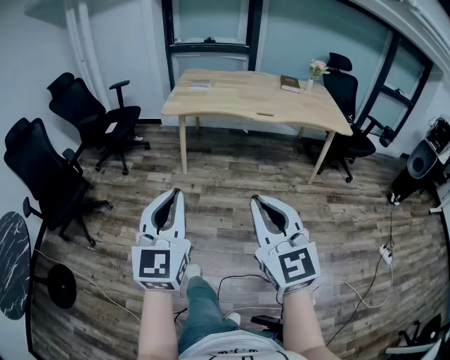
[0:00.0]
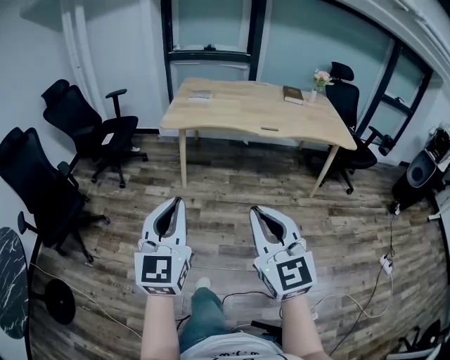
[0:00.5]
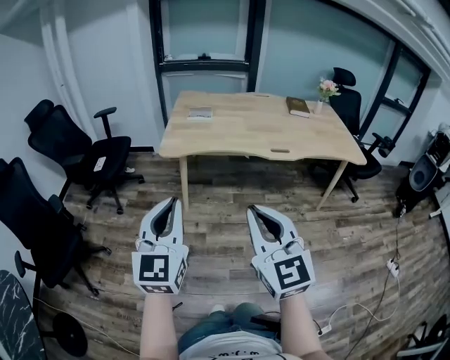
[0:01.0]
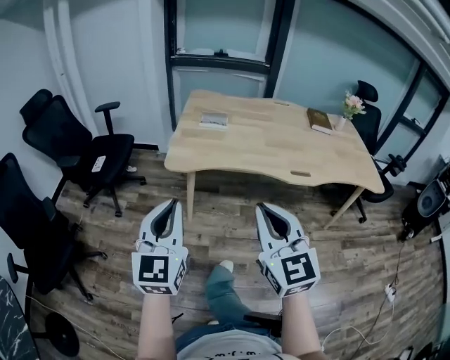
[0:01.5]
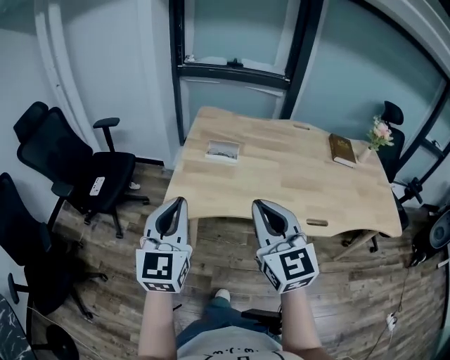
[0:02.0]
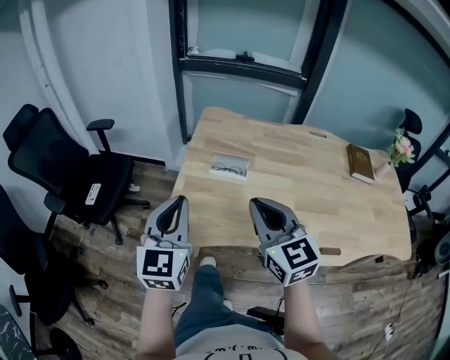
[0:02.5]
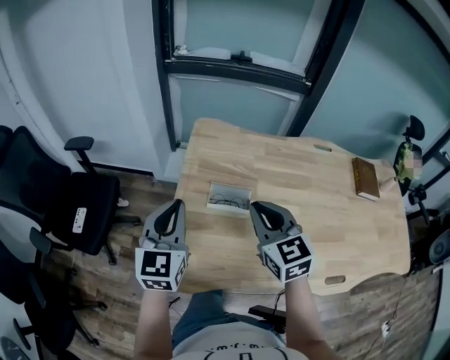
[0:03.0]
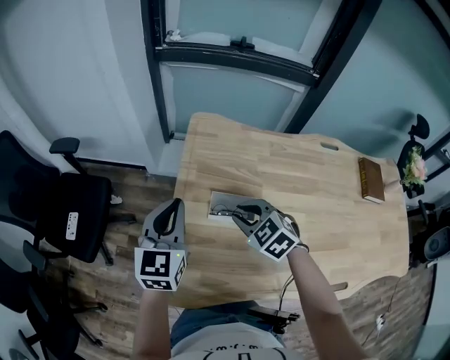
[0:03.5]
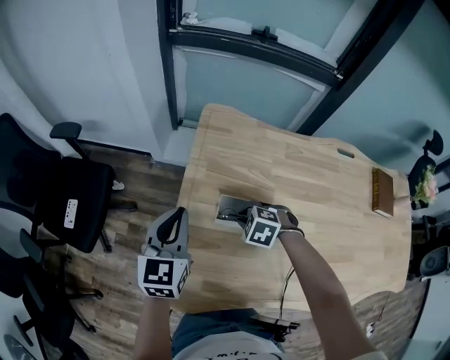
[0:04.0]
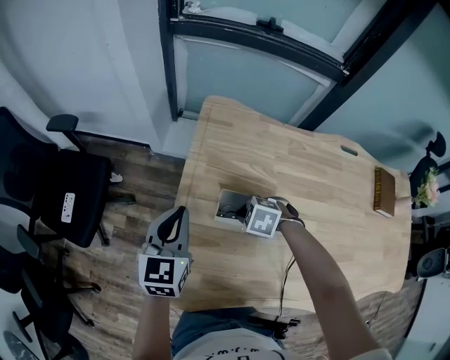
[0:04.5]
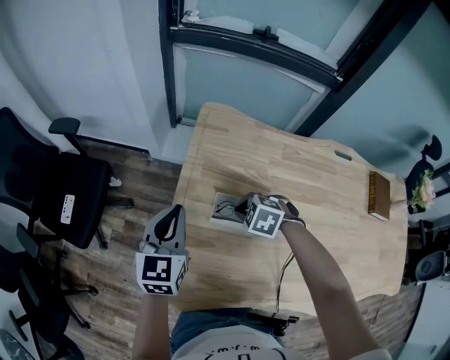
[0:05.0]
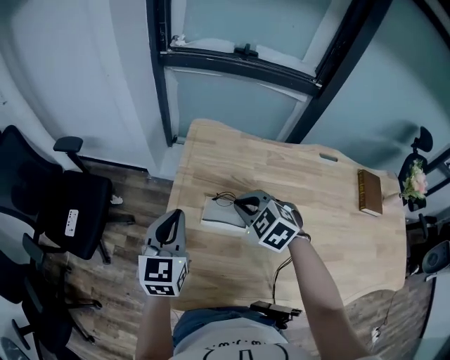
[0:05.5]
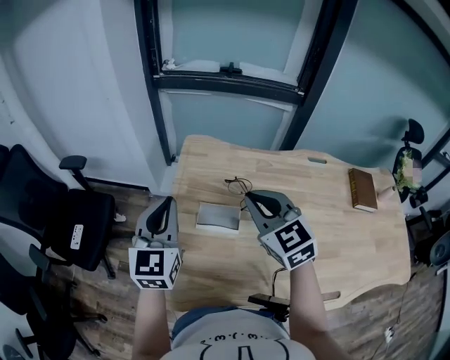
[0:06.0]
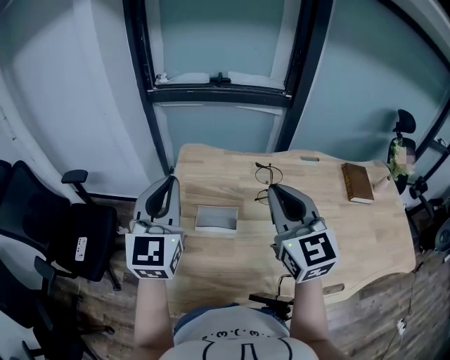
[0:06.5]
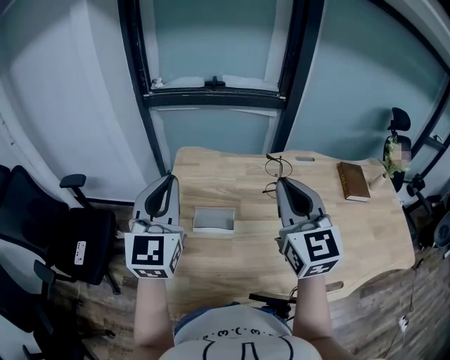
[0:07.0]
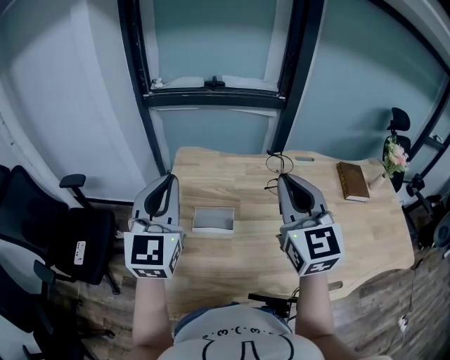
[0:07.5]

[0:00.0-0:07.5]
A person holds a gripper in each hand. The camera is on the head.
0:00.0 to 0:02.0: Both grippers are carried forward, approximately 70 cm.
0:02.0 to 0:04.0: The two grippers travel together, forward, roughly 50 cm. The left gripper rotates approximately 20 degrees; the right gripper shifts approximately 35 cm downward, and angles its fingers downward, by some 70 degrees.
0:04.0 to 0:05.5: The left gripper ends up roughly 5 cm from where it was; the right gripper shifts roughly 15 cm upward, and turns by some 30 degrees.
0:05.5 to 0:07.5: The left gripper heads upward, covering roughly 20 cm, and turns by roughly 20 degrees. The right gripper shifts roughly 30 cm upward, to the right and backward, and points its fingers some 50 degrees further upward.

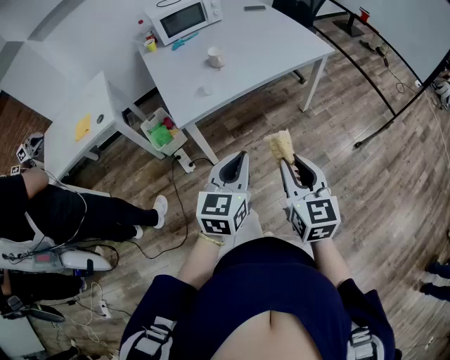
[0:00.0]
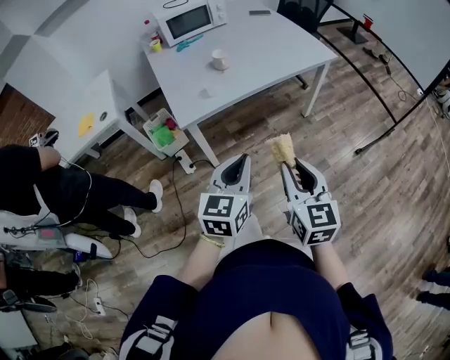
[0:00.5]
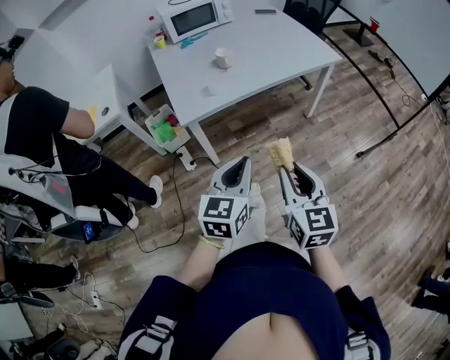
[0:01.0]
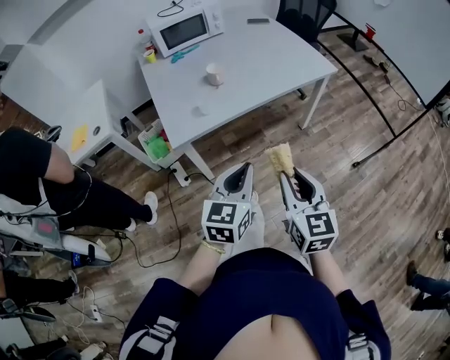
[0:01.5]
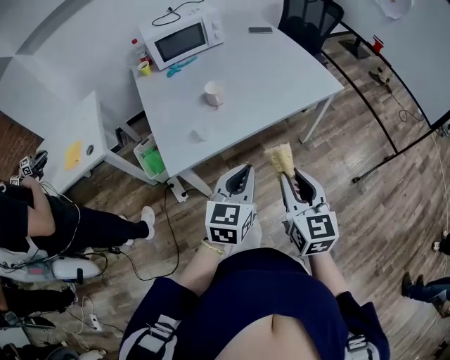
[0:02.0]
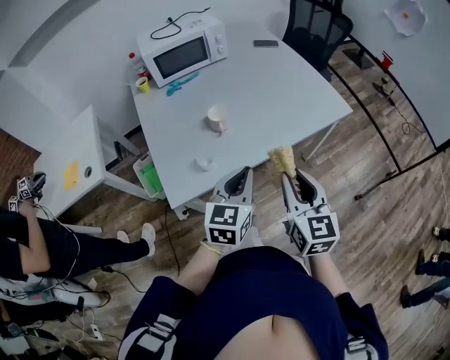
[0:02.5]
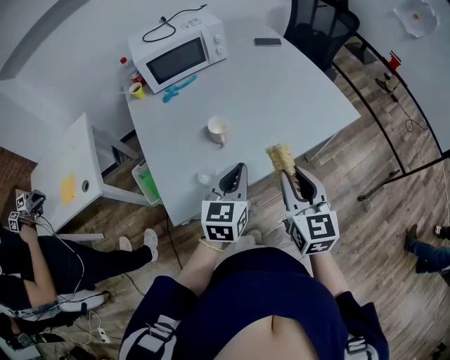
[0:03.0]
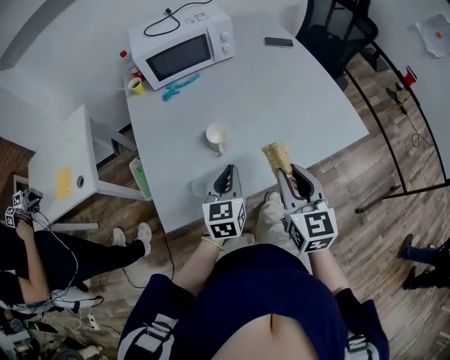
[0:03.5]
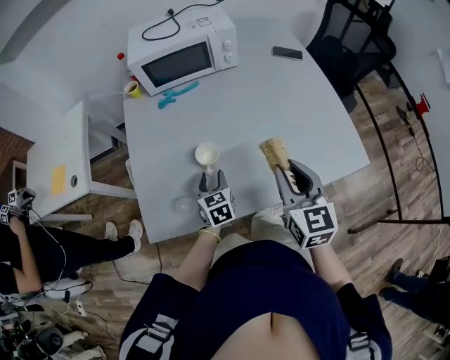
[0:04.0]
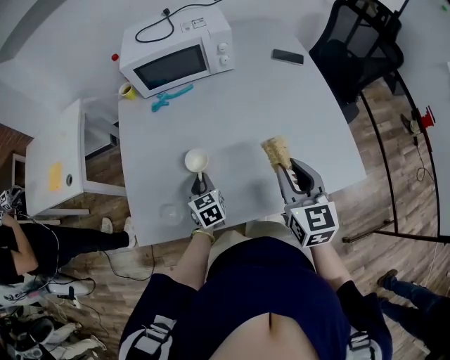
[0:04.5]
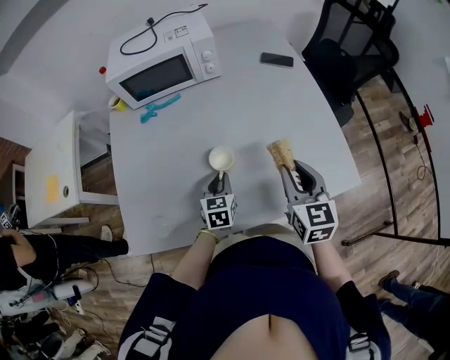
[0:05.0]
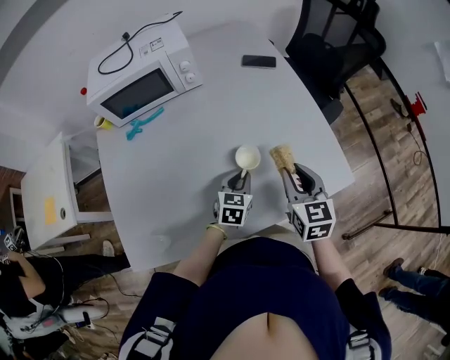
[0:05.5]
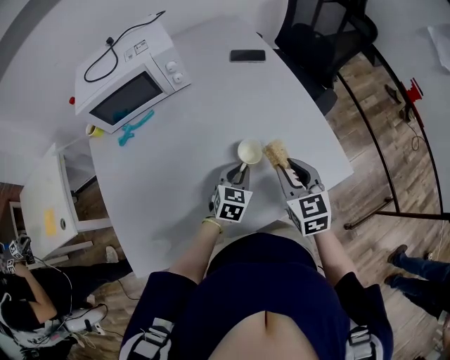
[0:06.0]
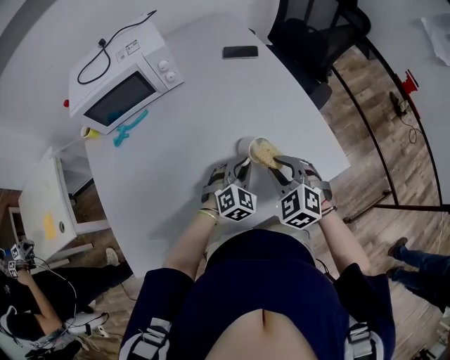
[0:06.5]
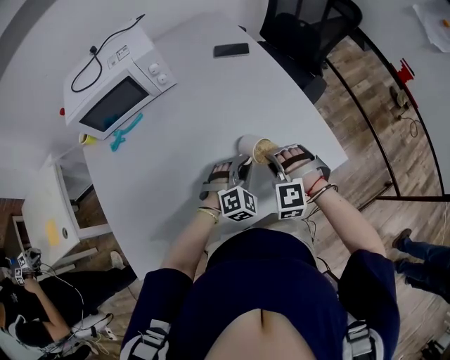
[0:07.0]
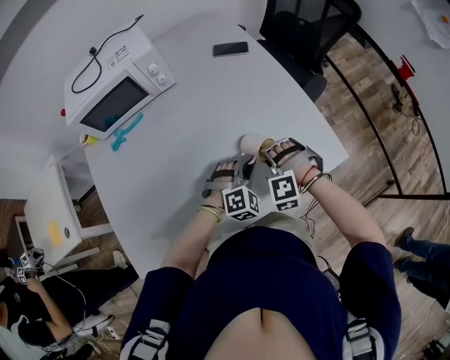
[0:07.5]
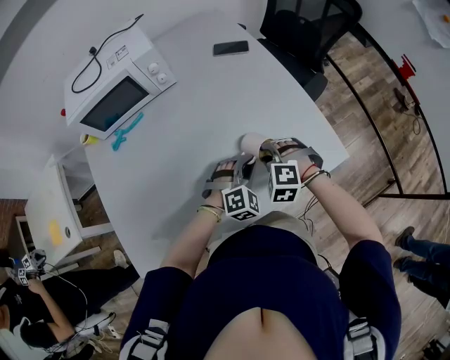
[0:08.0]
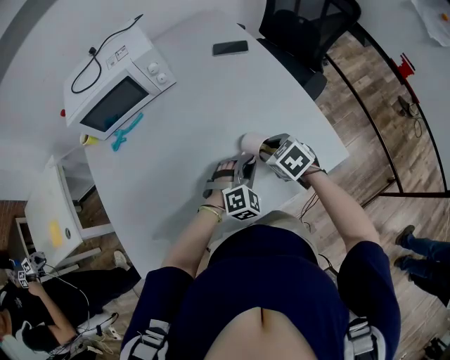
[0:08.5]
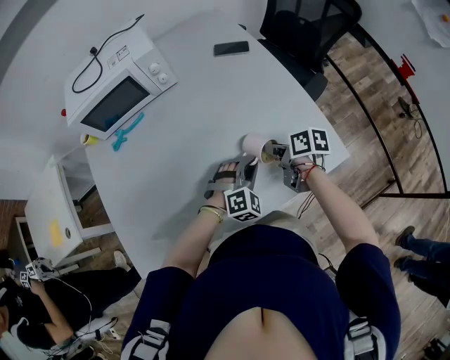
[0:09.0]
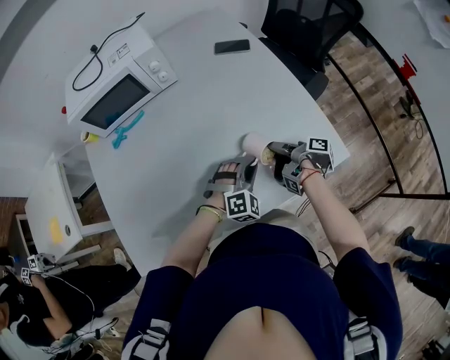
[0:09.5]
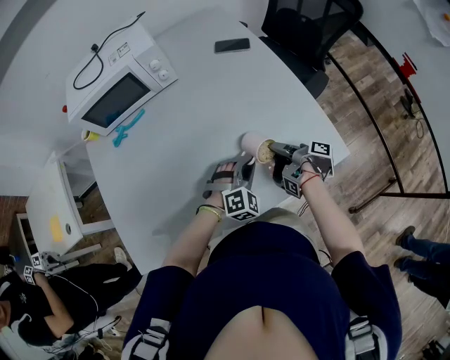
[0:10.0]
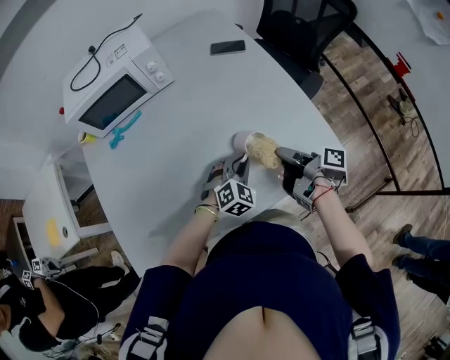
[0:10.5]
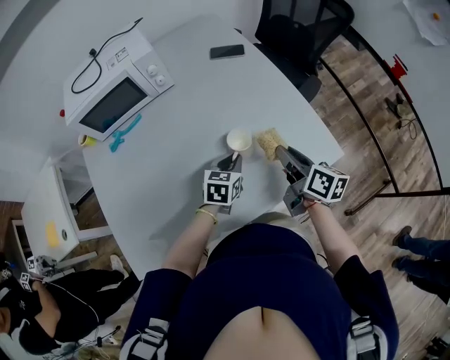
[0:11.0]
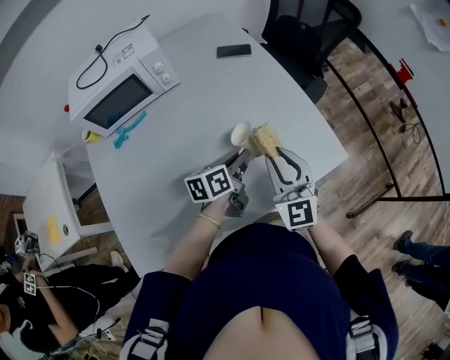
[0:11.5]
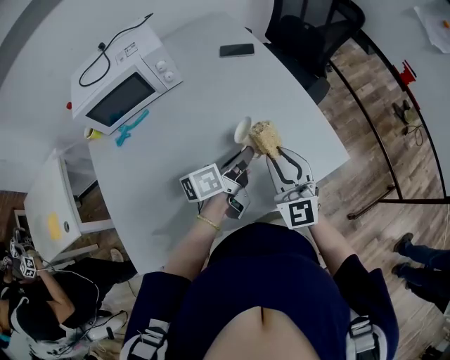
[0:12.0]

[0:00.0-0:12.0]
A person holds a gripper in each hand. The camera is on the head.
0:00.0 to 0:02.0: Both grippers travel together forward, approximately 20 cm.
0:02.0 to 0:04.0: The left gripper ends up some 40 cm from where it was, rotates some 40 degrees, and opens. The right gripper changes place by about 40 cm.
0:04.0 to 0:06.0: The left gripper ends up roughly 30 cm from where it was, changes its angle by approximately 40 degrees, and closes. Meanwhile the right gripper changes place by about 20 cm.
0:06.0 to 0:08.0: The right gripper goes roughly 10 cm downward, and rolls counterclockwise, seen from behind, by roughly 60 degrees. Meanwhile the left gripper goes approximately 5 cm to the right, and rotates around the line of its fingers by approximately 50 degrees, clockwise from behind.
0:08.0 to 0:10.0: The right gripper points its fingers some 30 degrees further upward.
0:10.0 to 0:12.0: Both grippers move upward, approximately 15 cm. The left gripper twists about 110 degrees counterclockwise, seen from behind. The right gripper rolls counterclockwise, seen from behind, by about 130 degrees.

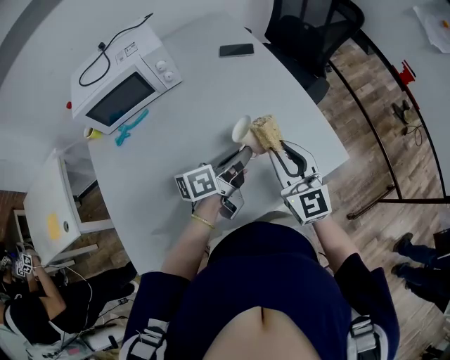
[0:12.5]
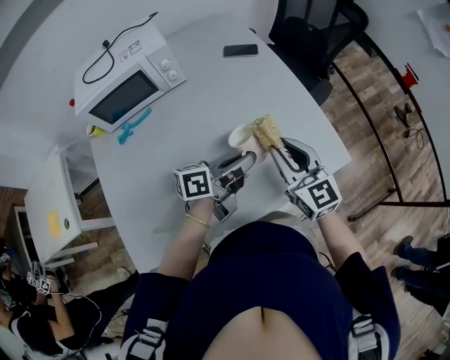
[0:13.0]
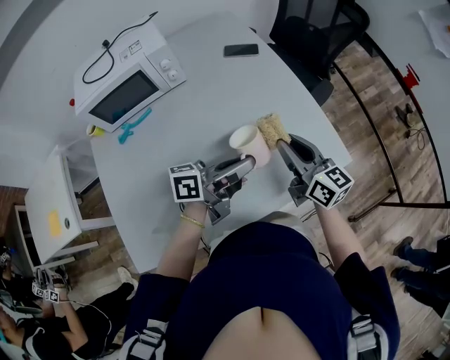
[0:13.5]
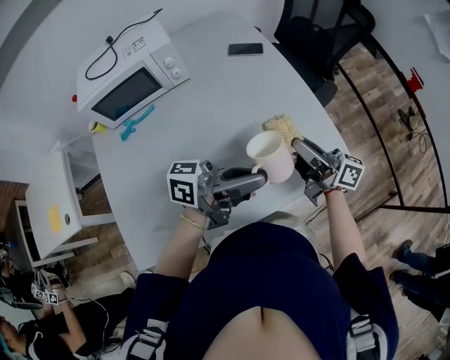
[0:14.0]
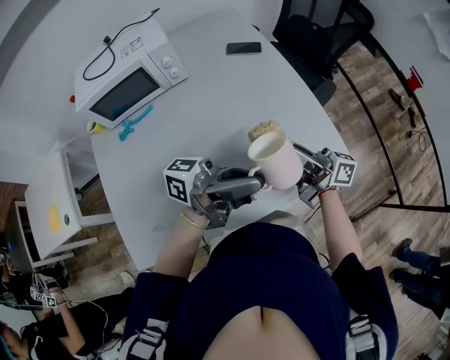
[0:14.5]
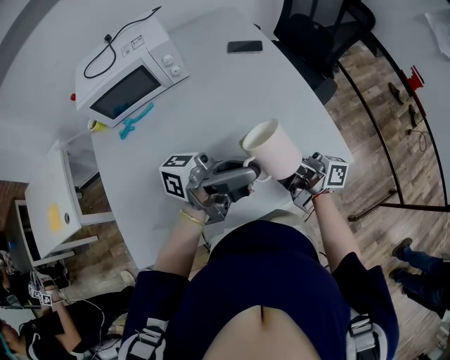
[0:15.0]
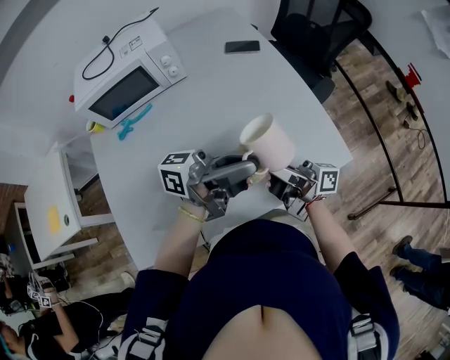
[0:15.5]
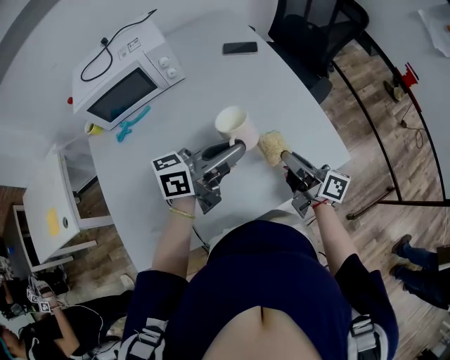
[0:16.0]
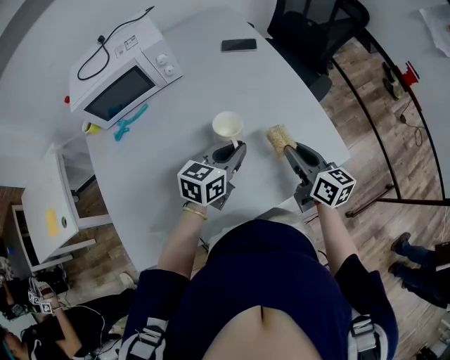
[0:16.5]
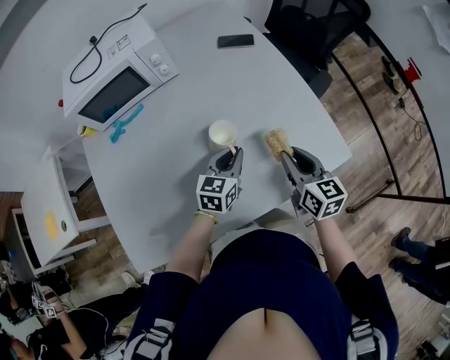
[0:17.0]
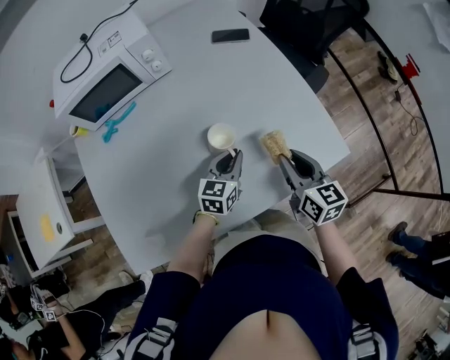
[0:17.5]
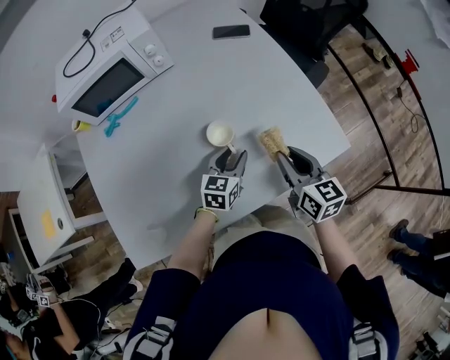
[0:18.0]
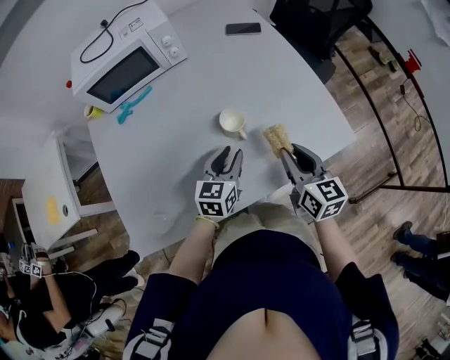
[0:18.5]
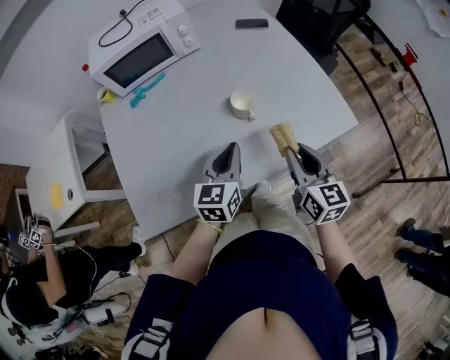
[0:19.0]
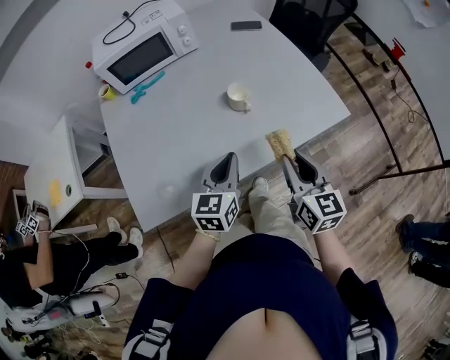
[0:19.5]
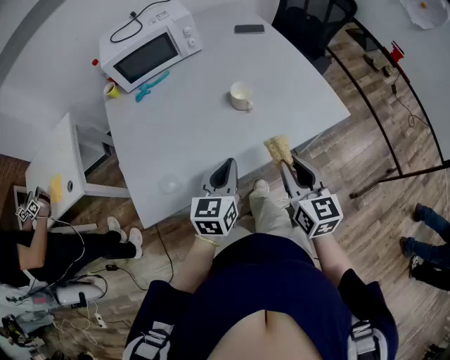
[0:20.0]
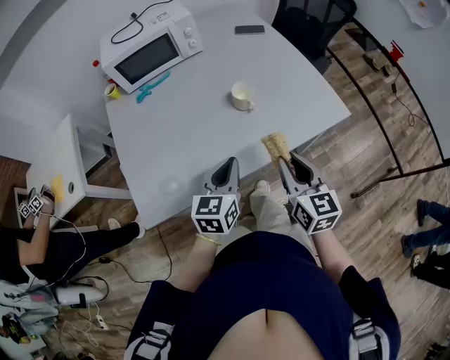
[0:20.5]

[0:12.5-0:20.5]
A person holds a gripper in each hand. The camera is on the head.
0:12.5 to 0:14.5: The right gripper twists about 70 degrees clockwise, seen from behind, while the left gripper moves upward, some 15 cm, and points its fingers roughly 40 degrees further upward.
0:14.5 to 0:16.5: The right gripper is displaced downward by approximately 5 cm, and points its fingers roughly 30 degrees further downward. The left gripper is displaced downward by approximately 15 cm, and tips its fingers downward by approximately 50 degrees.
0:16.5 to 0:18.5: The right gripper goes approximately 5 cm backward. The left gripper goes some 10 cm backward, to the left and downward, and opens its fingers.
0:18.5 to 0:20.5: The right gripper travels backward by about 15 cm. The left gripper moves backward and upward, about 20 cm, and closes.
